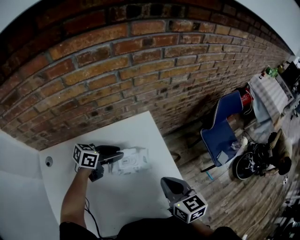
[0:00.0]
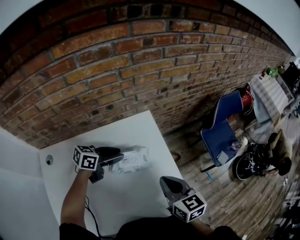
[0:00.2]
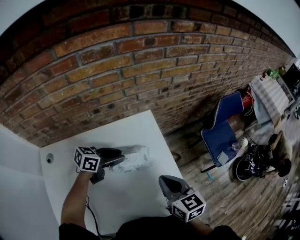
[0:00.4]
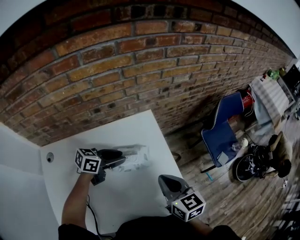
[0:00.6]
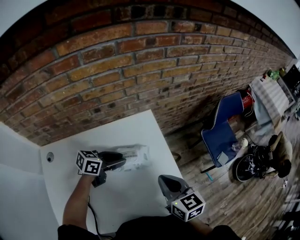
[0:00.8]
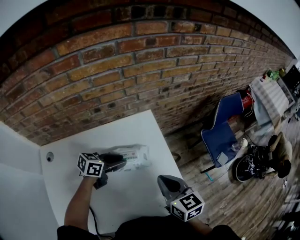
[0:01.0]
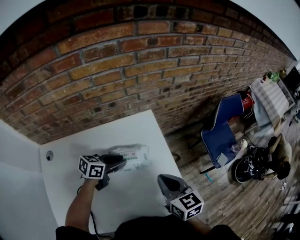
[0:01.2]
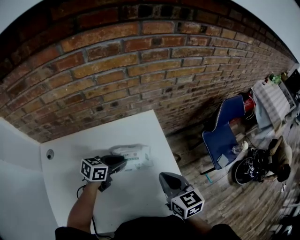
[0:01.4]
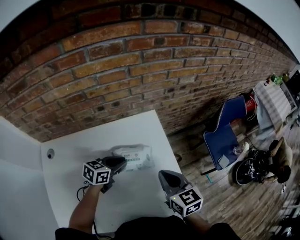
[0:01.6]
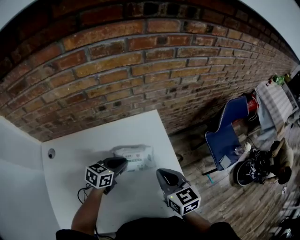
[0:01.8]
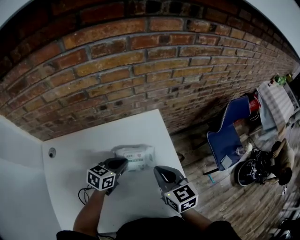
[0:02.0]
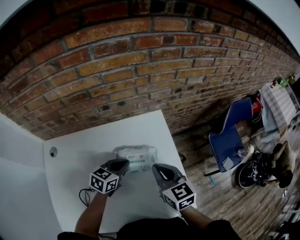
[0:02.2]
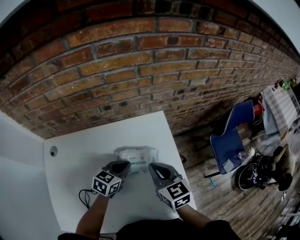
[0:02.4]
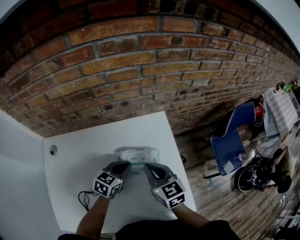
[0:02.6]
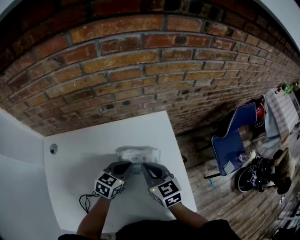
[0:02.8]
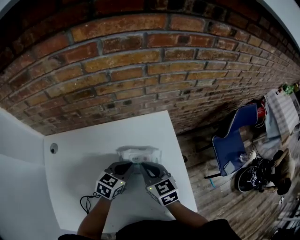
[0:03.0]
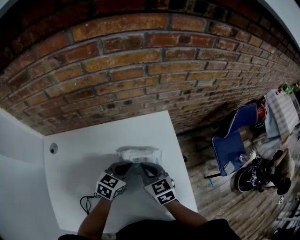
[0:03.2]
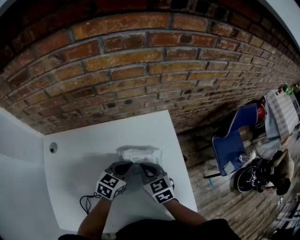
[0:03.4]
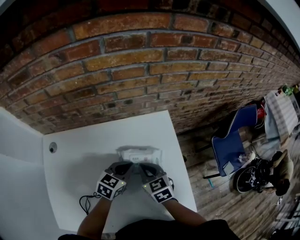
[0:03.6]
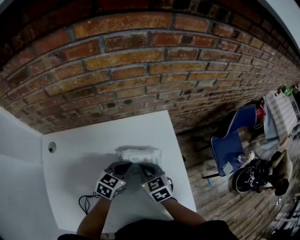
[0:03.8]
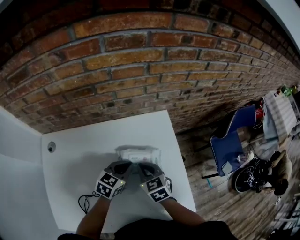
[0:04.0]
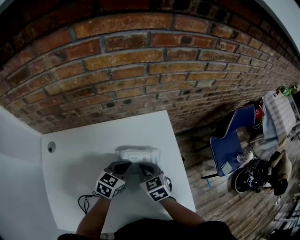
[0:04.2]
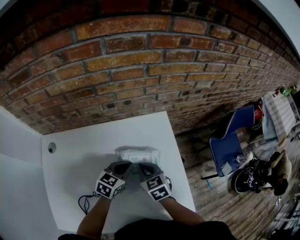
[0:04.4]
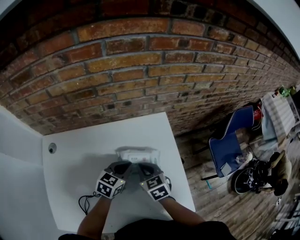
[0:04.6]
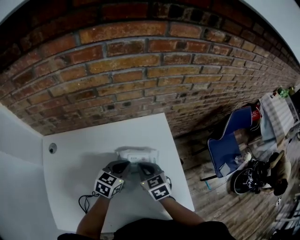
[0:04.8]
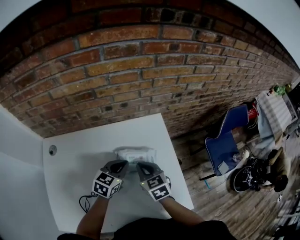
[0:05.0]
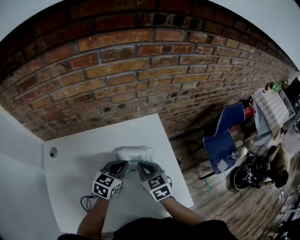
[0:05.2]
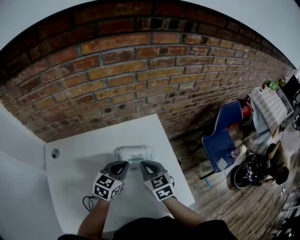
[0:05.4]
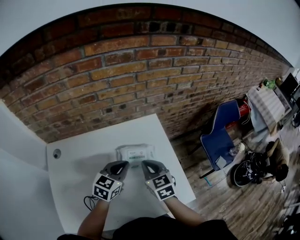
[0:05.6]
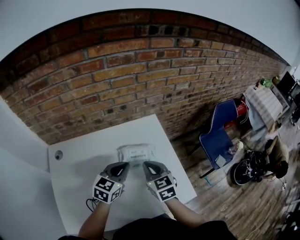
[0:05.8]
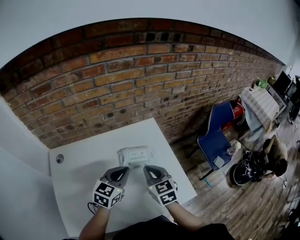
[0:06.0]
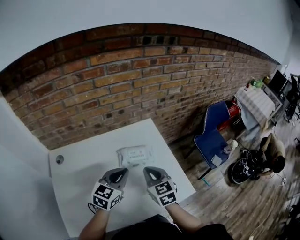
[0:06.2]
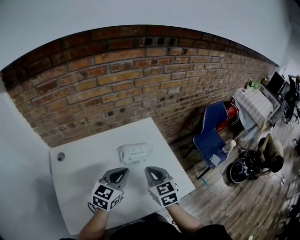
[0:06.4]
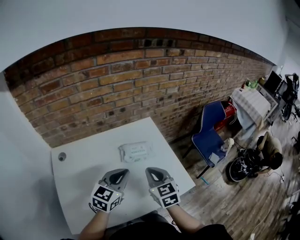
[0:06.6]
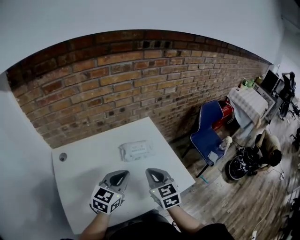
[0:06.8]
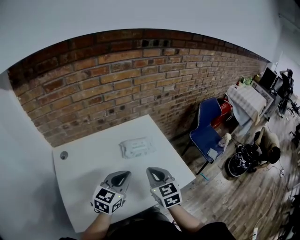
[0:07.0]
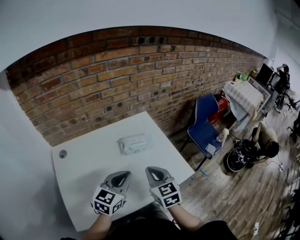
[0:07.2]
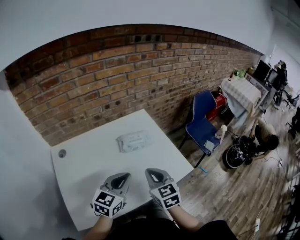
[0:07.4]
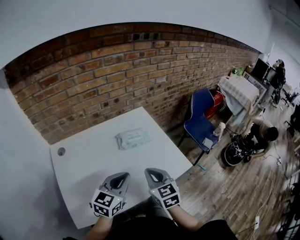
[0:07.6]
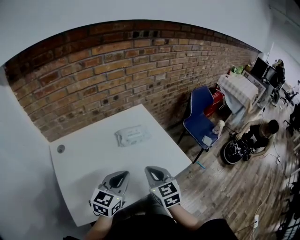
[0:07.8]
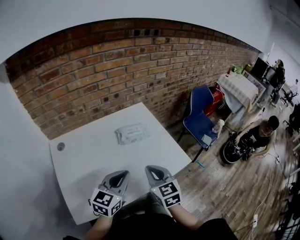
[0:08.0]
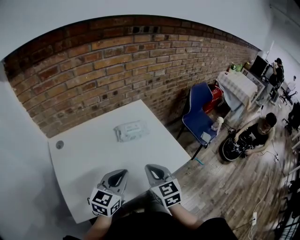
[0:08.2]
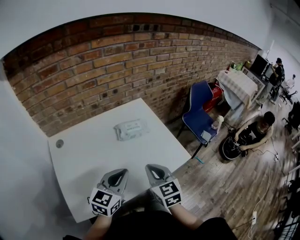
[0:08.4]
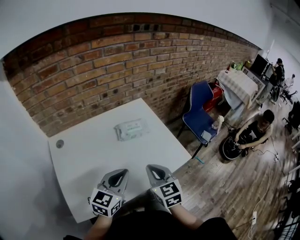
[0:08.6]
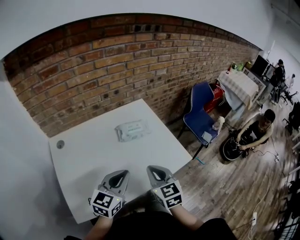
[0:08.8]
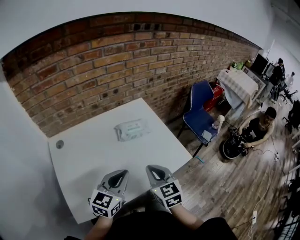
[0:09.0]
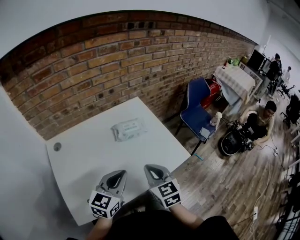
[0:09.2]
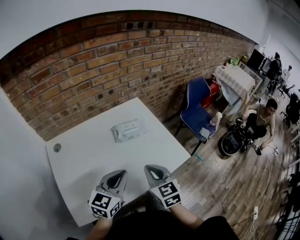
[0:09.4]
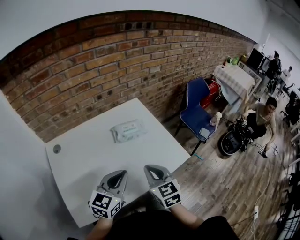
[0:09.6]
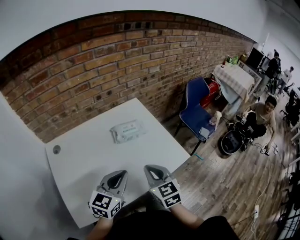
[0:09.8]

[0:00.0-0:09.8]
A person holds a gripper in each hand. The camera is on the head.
0:00.0 to 0:01.4: The left gripper moves roughly 5 cm.
0:01.4 to 0:02.8: The right gripper shifts some 15 cm to the left and forward, while the left gripper rotates approximately 20 degrees.
0:02.8 to 0:04.2: The right gripper heads downward, covering some 5 cm.
0:04.2 to 0:05.6: Both grippers move upward, about 10 cm.
0:05.6 to 0:07.0: The right gripper moves backward, about 15 cm, while the left gripper heads backward and upward, covering approximately 20 cm.
0:07.0 to 0:08.4: The grippers both shift backward by about 10 cm.
0:08.4 to 0:09.8: There are only small adjustments of the grippers.

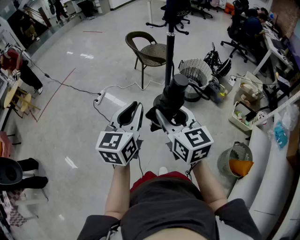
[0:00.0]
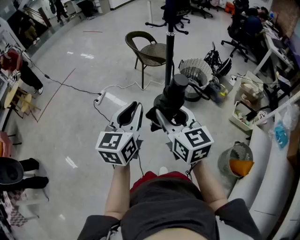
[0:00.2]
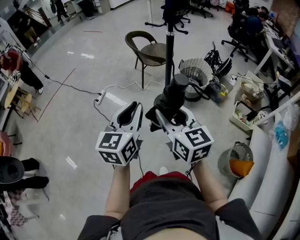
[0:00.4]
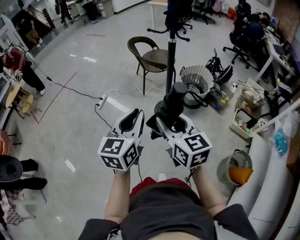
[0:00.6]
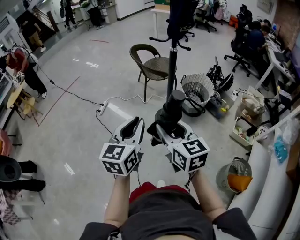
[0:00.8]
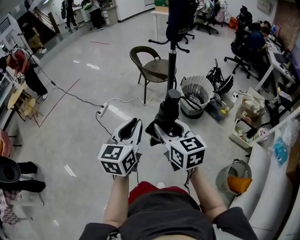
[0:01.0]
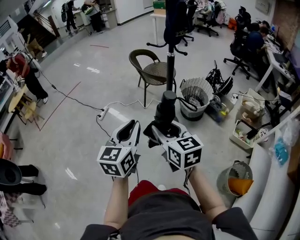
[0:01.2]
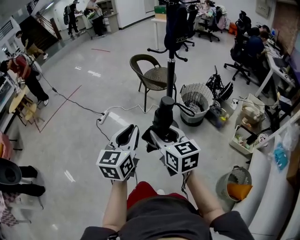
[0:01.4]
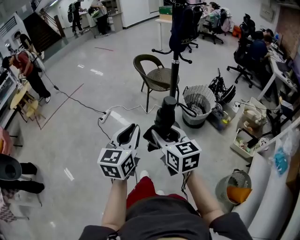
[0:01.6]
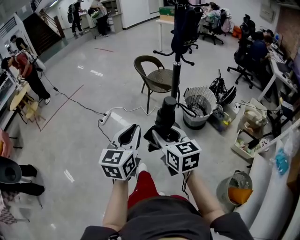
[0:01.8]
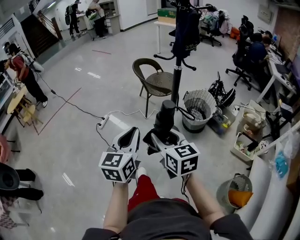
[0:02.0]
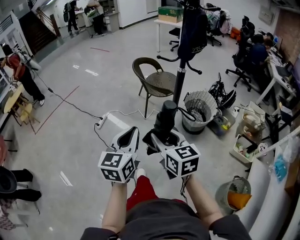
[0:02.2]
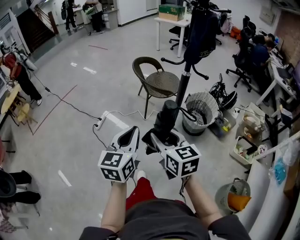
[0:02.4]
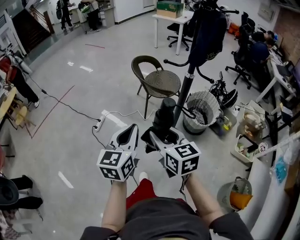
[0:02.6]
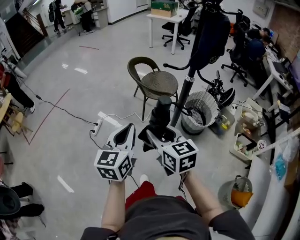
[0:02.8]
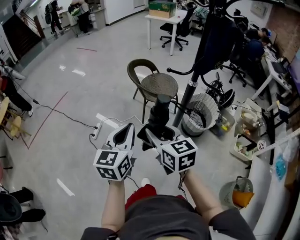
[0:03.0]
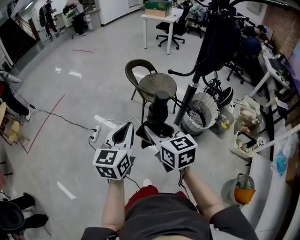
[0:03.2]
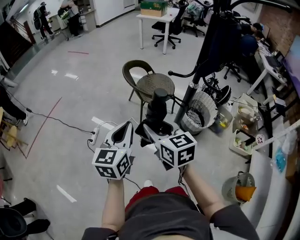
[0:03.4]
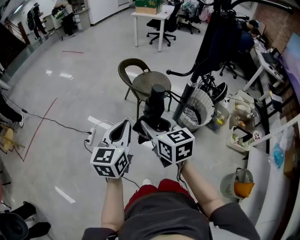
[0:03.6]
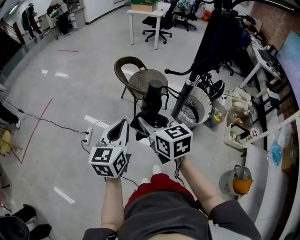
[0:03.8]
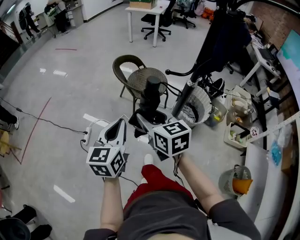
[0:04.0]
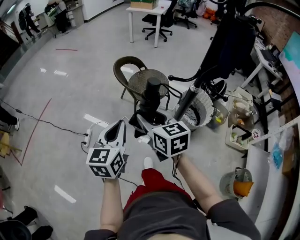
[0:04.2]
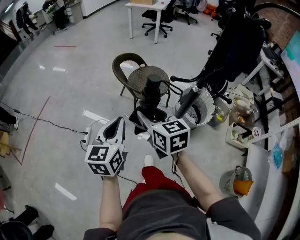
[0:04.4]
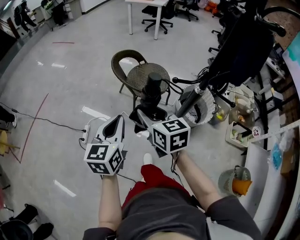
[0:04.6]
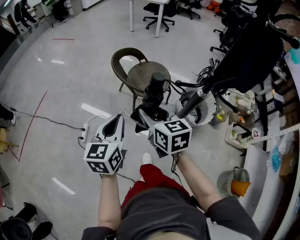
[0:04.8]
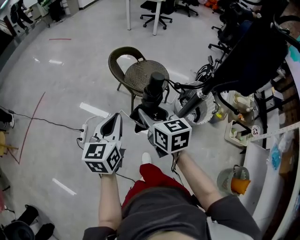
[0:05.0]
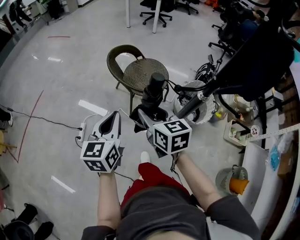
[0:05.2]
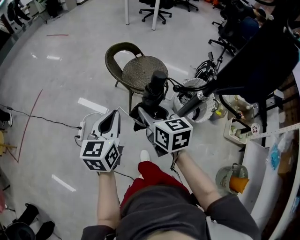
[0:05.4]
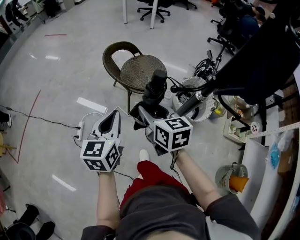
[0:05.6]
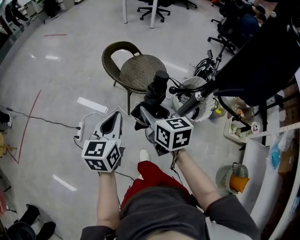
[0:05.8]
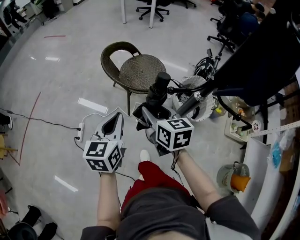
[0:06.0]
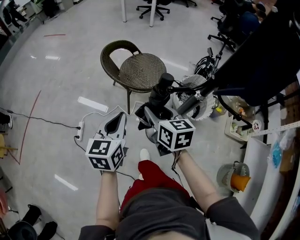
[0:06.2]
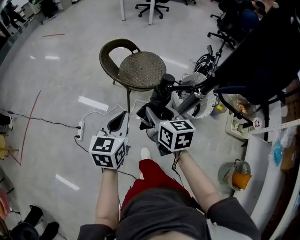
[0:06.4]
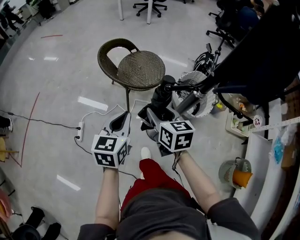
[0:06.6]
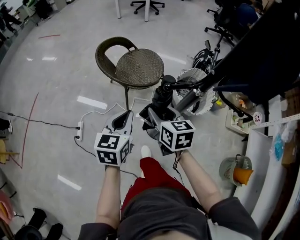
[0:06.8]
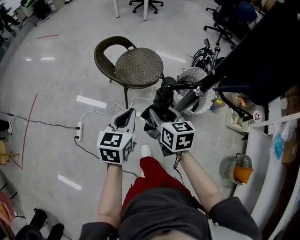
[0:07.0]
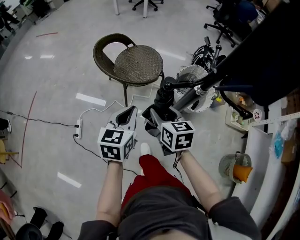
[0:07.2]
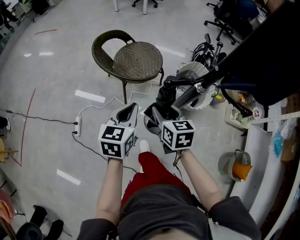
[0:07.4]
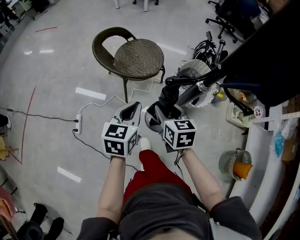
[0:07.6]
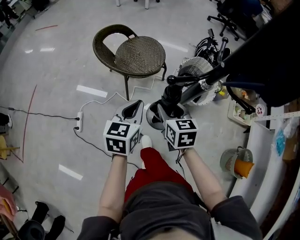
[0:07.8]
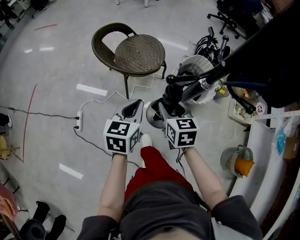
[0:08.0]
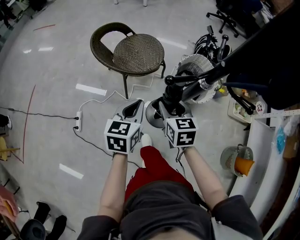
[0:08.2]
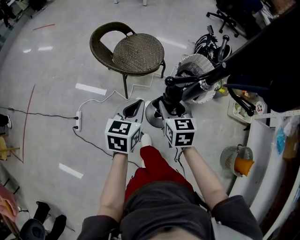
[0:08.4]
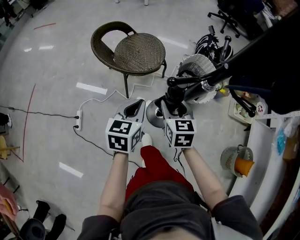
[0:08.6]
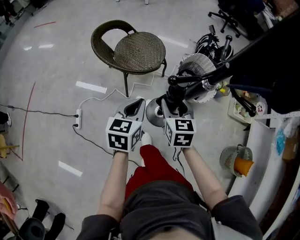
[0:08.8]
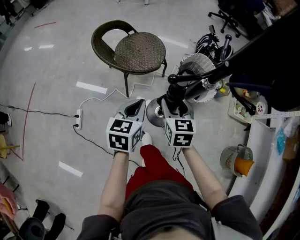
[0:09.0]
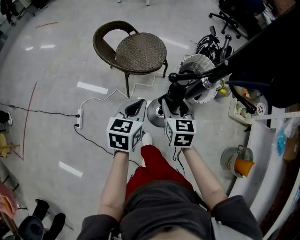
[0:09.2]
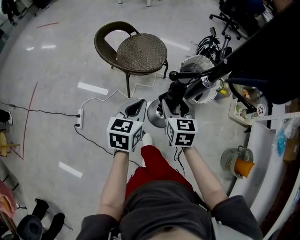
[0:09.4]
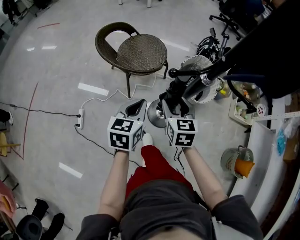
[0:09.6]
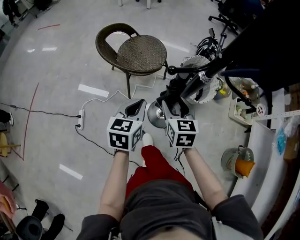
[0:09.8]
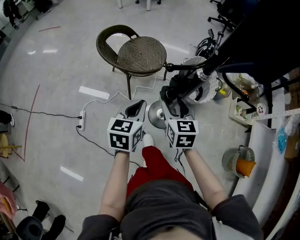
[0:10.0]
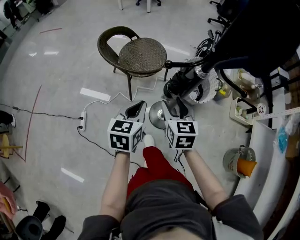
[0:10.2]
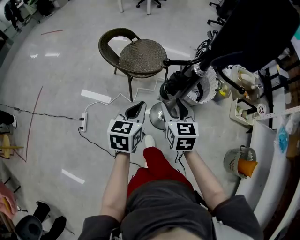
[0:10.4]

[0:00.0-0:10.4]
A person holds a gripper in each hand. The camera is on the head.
0:00.0 to 0:01.4: The grippers move only a little.
0:01.4 to 0:03.0: Both grippers move forward, about 25 cm.
0:03.0 to 0:04.4: The grippers both shift forward by some 15 cm.
0:04.4 to 0:06.0: The right gripper is displaced forward, downward and to the right by approximately 15 cm. The left gripper travels forward and downward by some 10 cm.
0:06.0 to 0:07.4: The left gripper travels to the right and downward by approximately 10 cm; the right gripper moves downward and to the right, approximately 10 cm.
0:07.4 to 0:09.0: The grippers stay close to where they were, moving slightly.
0:09.0 to 0:10.4: The two grippers go about 5 cm backward.

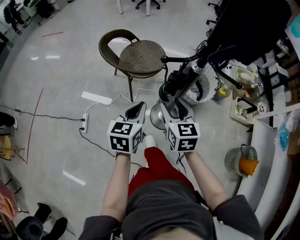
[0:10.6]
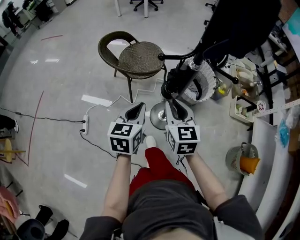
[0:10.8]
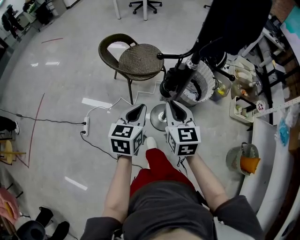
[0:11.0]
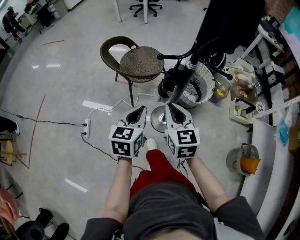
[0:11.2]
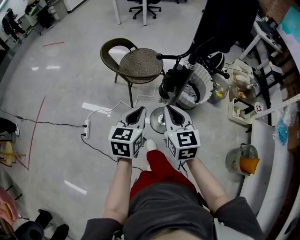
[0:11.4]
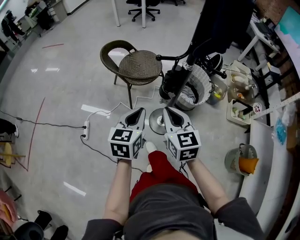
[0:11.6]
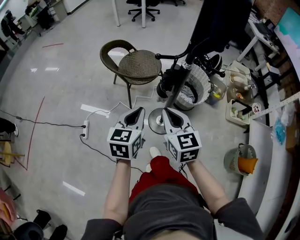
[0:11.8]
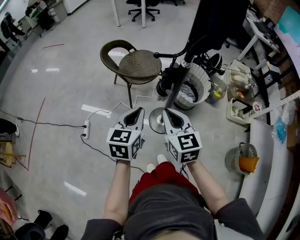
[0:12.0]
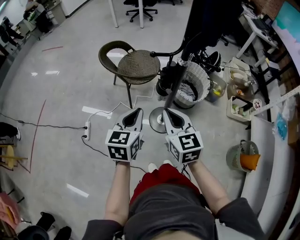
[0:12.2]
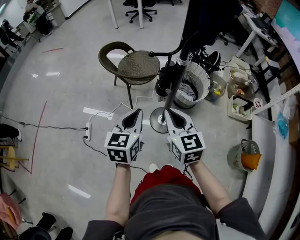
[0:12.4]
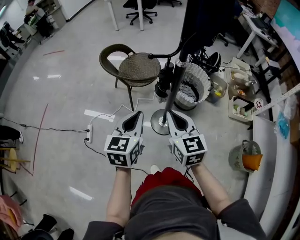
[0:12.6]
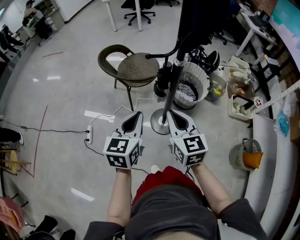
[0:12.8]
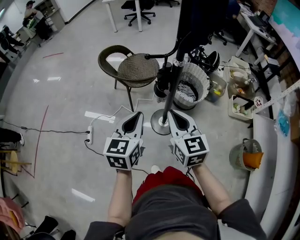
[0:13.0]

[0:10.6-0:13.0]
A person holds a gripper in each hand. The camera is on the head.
0:10.6 to 0:11.8: Both grippers move backward and upward, about 10 cm. The right gripper closes up.
0:11.8 to 0:13.0: The right gripper moves some 5 cm, while the left gripper changes place by approximately 5 cm.

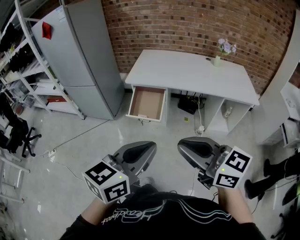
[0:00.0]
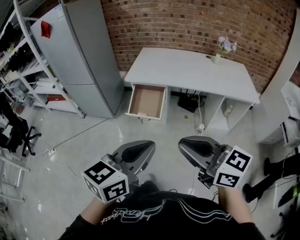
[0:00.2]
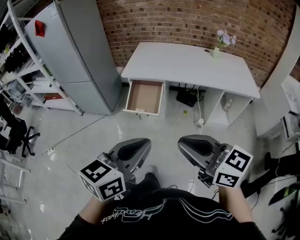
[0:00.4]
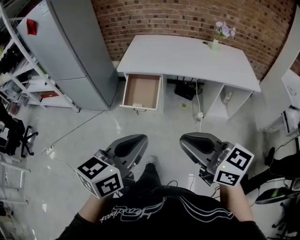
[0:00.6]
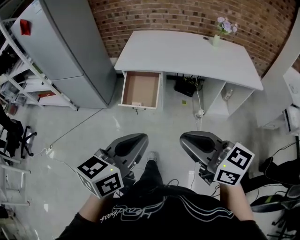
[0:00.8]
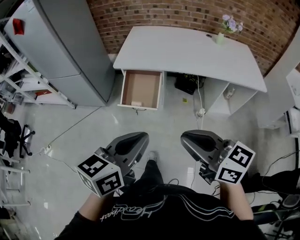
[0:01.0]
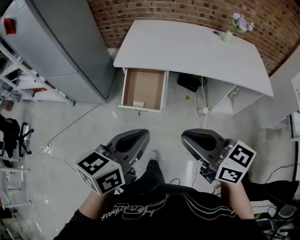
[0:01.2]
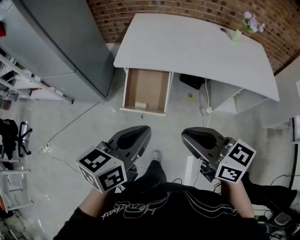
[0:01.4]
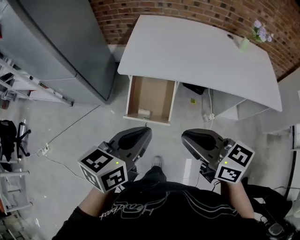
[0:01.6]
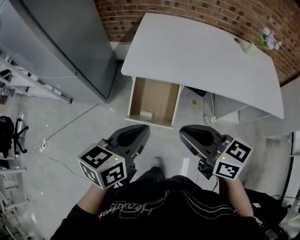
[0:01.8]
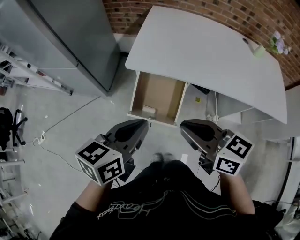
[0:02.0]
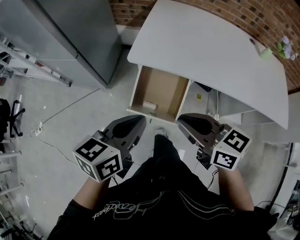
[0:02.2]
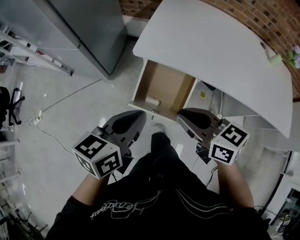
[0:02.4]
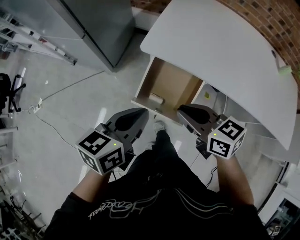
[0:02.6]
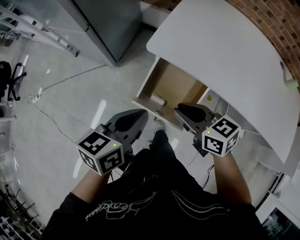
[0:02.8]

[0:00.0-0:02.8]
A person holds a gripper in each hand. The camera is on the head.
0:00.0 to 0:01.4: The right gripper shifts some 35 cm forward and downward; the left gripper travels forward by about 30 cm.
0:01.4 to 0:02.8: The right gripper goes about 35 cm forward and downward, and changes its angle by roughly 30 degrees. The left gripper goes some 30 cm forward, downward and to the left, and turns by approximately 20 degrees.
